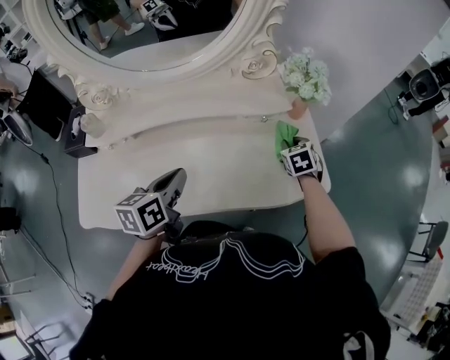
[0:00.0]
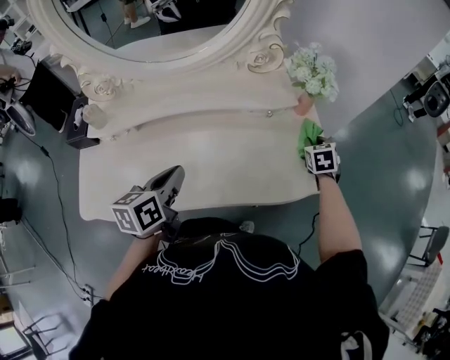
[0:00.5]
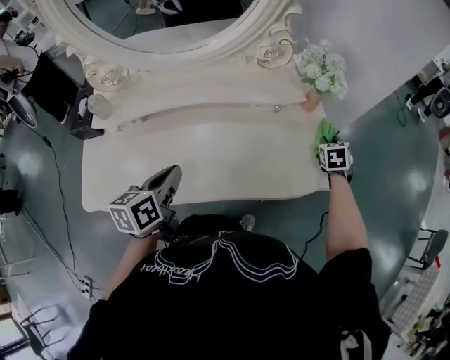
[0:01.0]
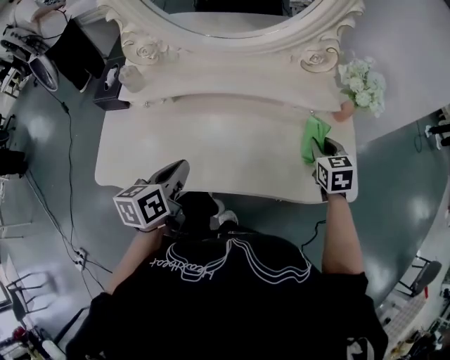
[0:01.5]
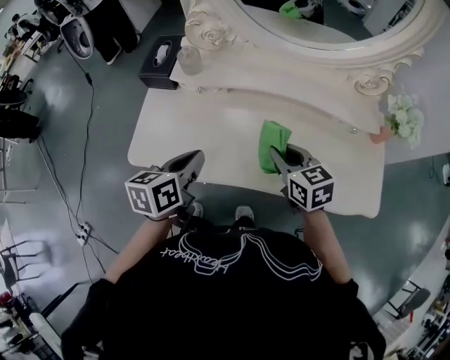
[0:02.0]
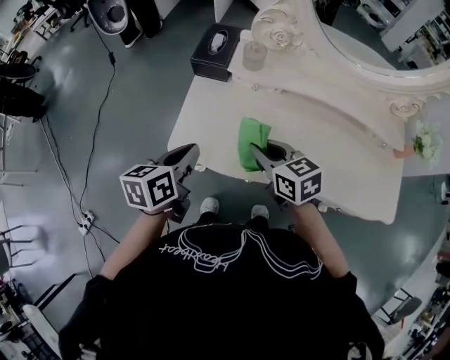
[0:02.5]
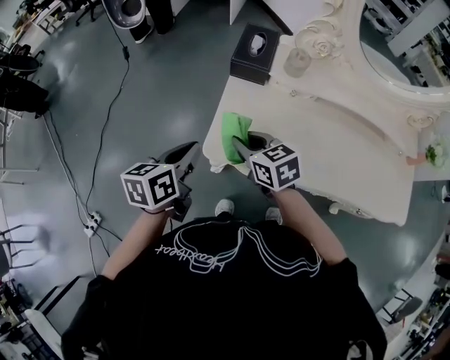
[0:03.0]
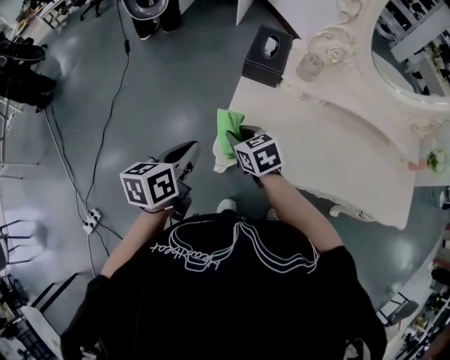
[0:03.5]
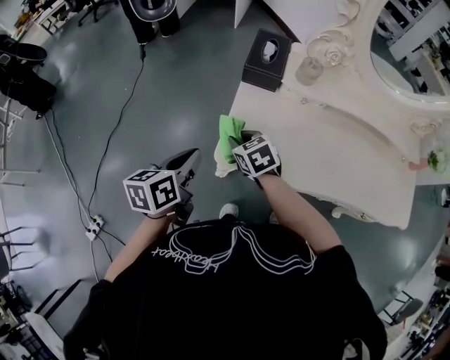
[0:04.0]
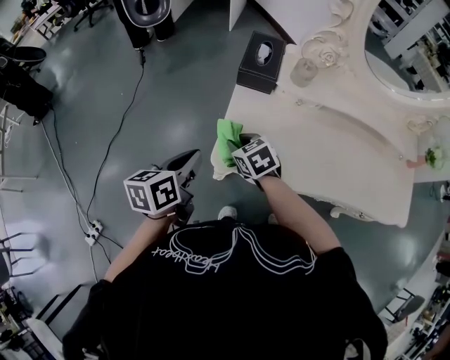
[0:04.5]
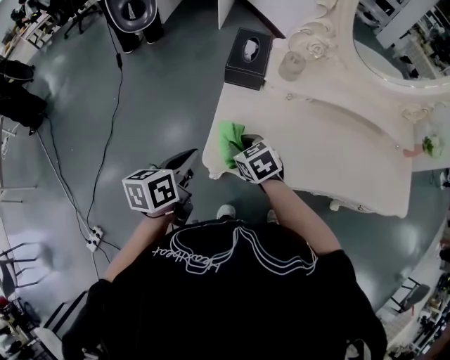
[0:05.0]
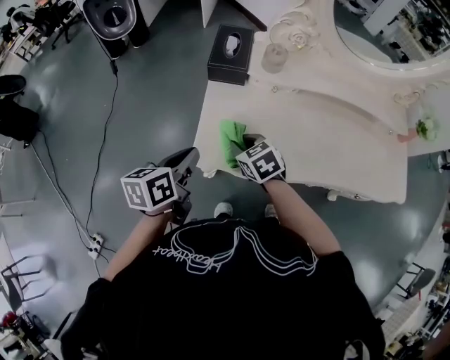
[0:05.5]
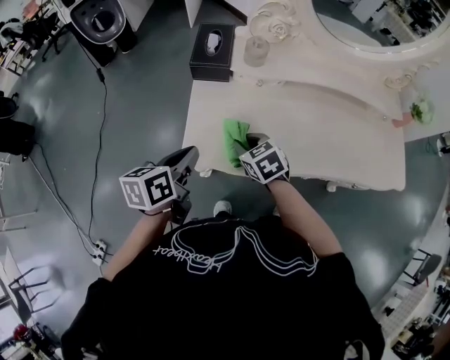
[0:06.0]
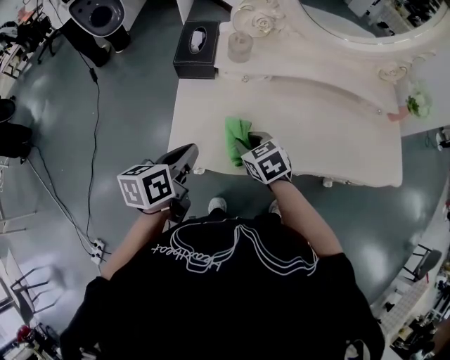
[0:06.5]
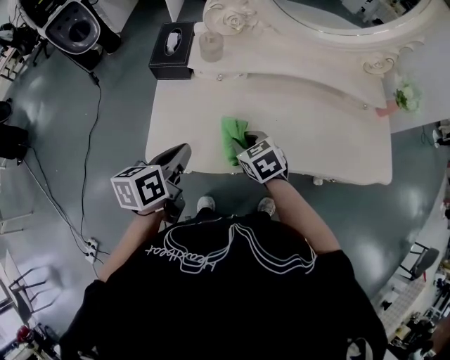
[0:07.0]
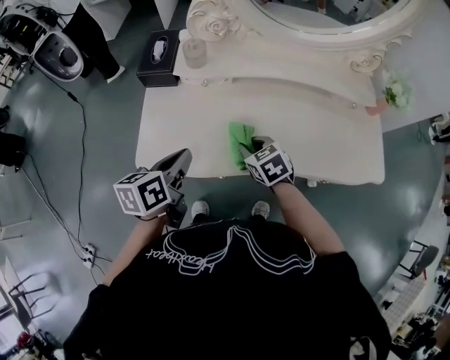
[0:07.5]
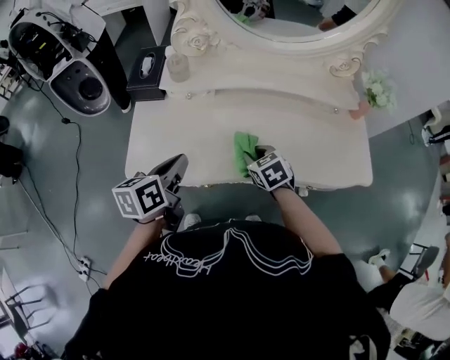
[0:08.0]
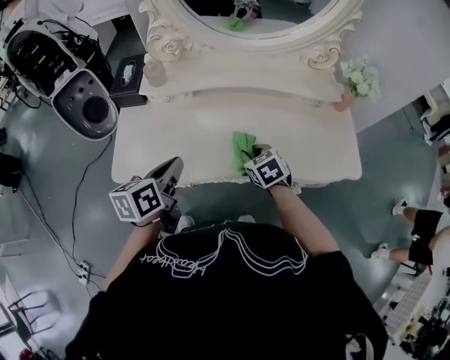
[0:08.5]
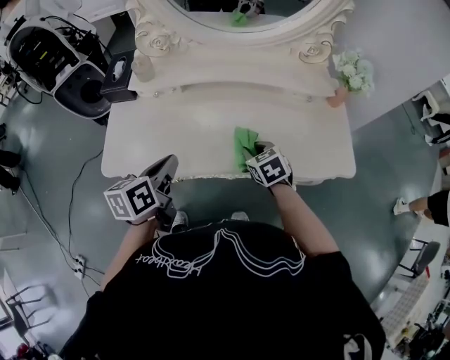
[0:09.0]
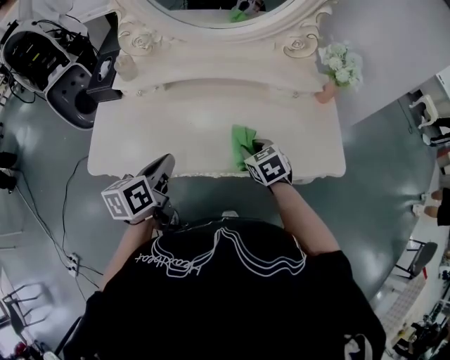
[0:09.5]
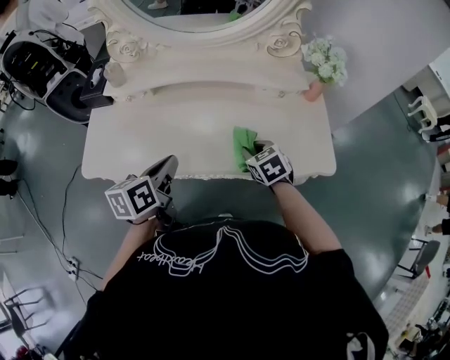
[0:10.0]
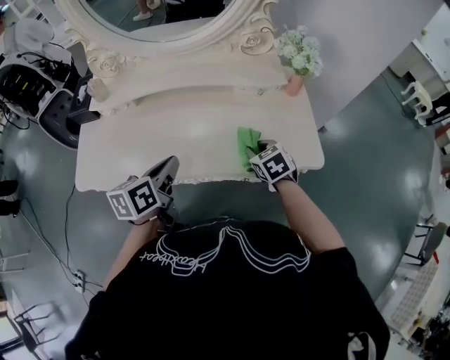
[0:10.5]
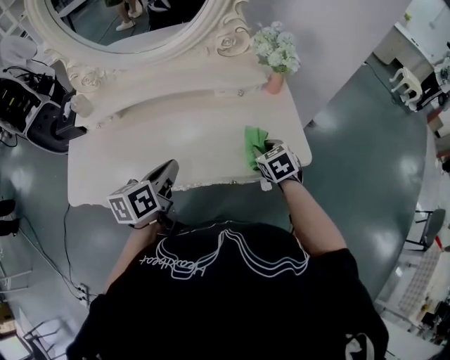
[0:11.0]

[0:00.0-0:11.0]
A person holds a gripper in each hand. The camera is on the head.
0.0 to 2.0 s: The right gripper shifts by roughly 40 cm, and rotates approximately 40 degrees. The left gripper ends up approximately 20 cm from where it was.
2.0 to 3.5 s: The grippers both shift to the left by roughly 40 cm.
3.5 to 5.5 s: The two grippers go roughly 5 cm to the right.
5.5 to 7.5 s: Both grippers move to the right, about 20 cm.
7.5 to 9.0 s: The two grippers go some 15 cm to the right.
9.0 to 11.0 s: The grippers both shift to the right by approximately 25 cm.

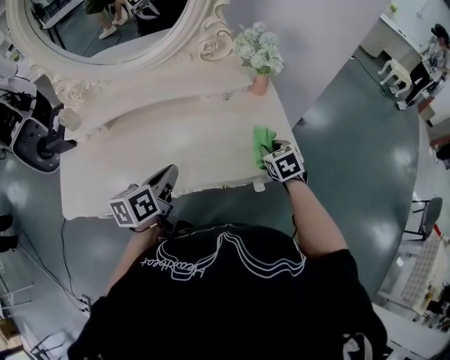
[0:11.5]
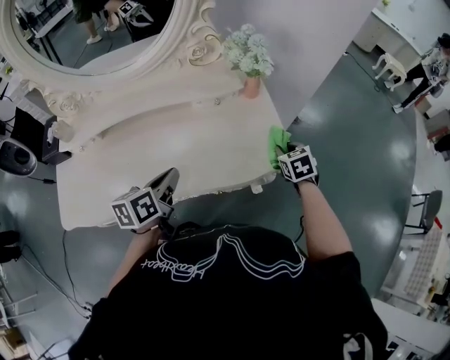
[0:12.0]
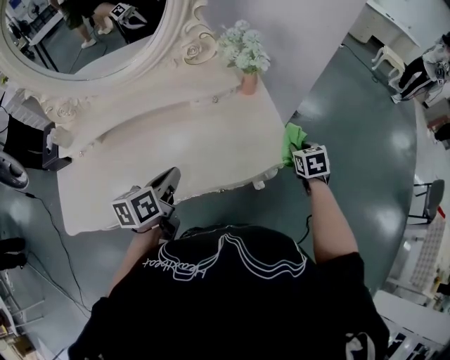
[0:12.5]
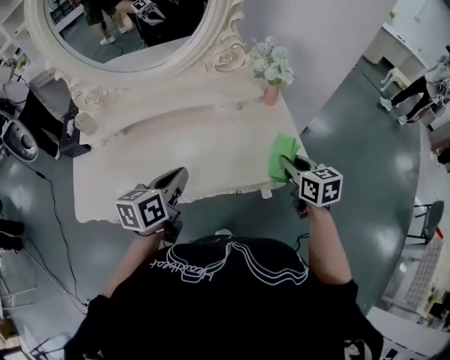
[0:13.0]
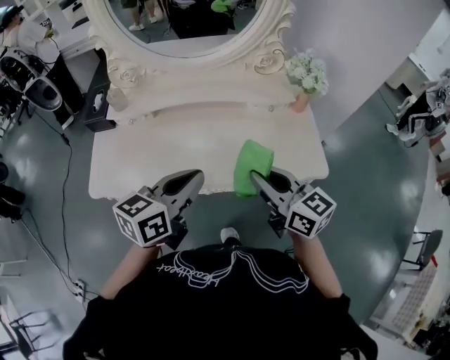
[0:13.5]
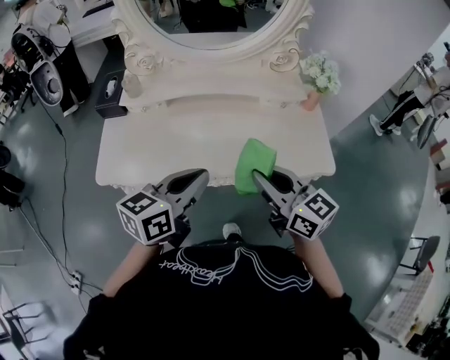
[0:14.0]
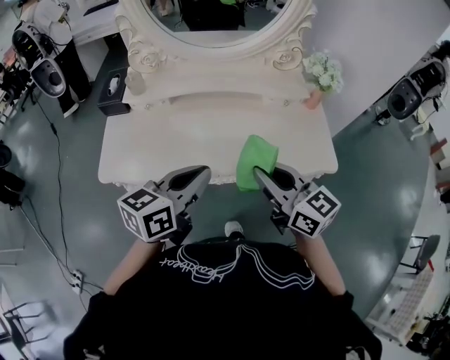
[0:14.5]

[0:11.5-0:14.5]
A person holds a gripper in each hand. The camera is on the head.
11.5 to 13.0 s: The left gripper travels upward by approximately 5 cm; the right gripper moves upward and backward, approximately 15 cm, moves roughly 15 cm to the right and comes back, and changes its angle by some 30 degrees.
13.0 to 14.5 s: The right gripper heads to the left and upward, covering about 30 cm, and swivels roughly 40 degrees; the left gripper is displaced backward, to the left and upward by about 15 cm.

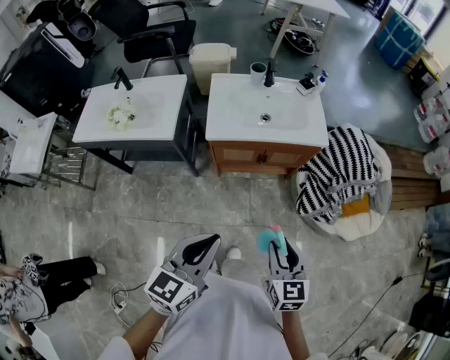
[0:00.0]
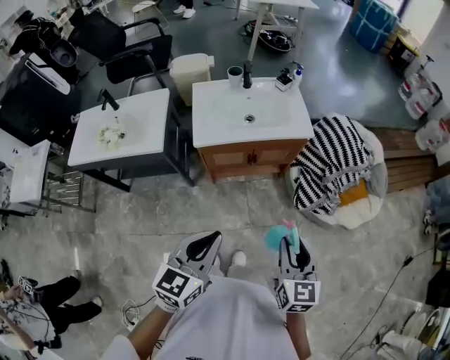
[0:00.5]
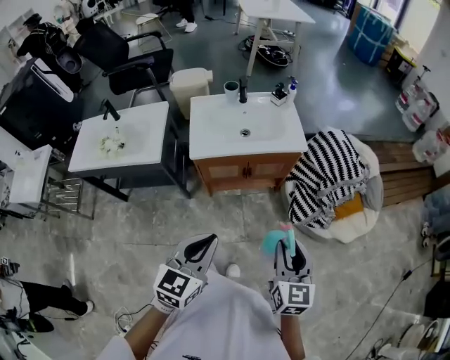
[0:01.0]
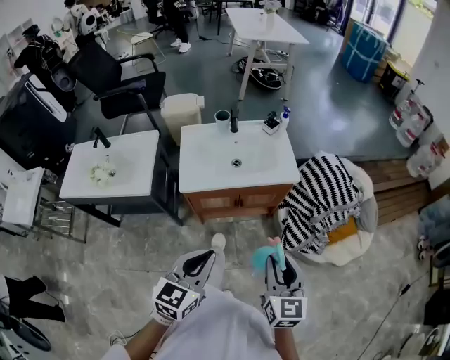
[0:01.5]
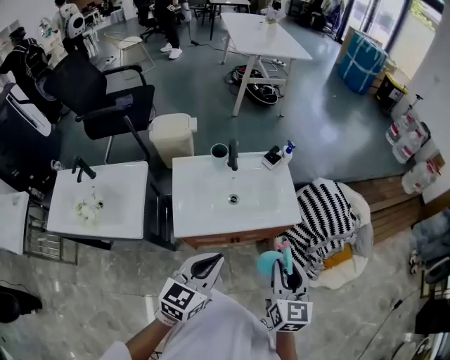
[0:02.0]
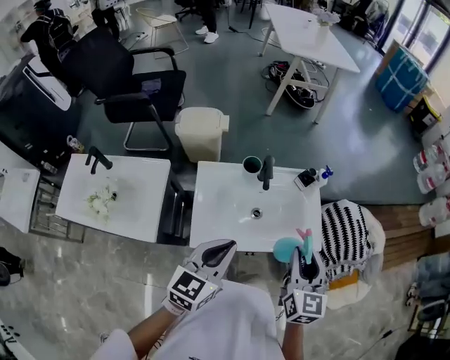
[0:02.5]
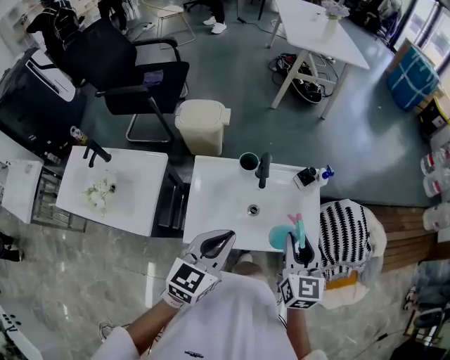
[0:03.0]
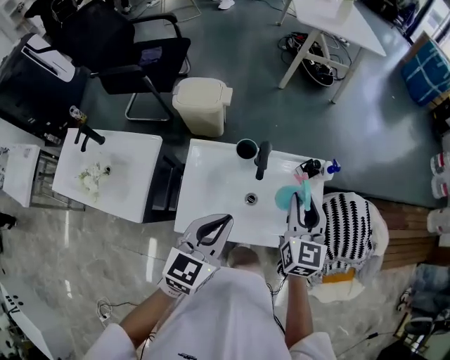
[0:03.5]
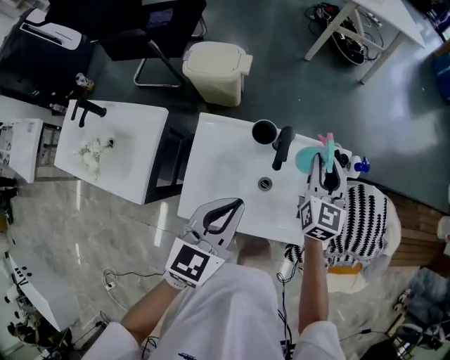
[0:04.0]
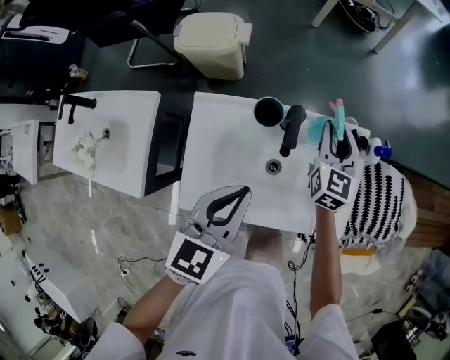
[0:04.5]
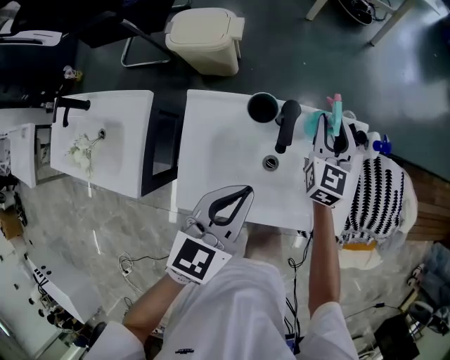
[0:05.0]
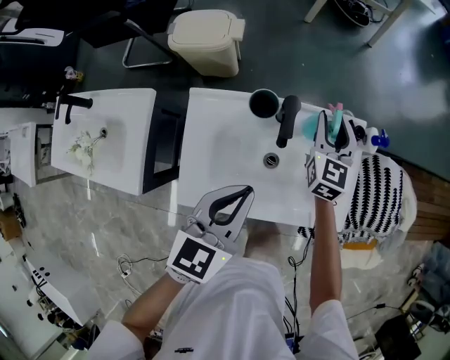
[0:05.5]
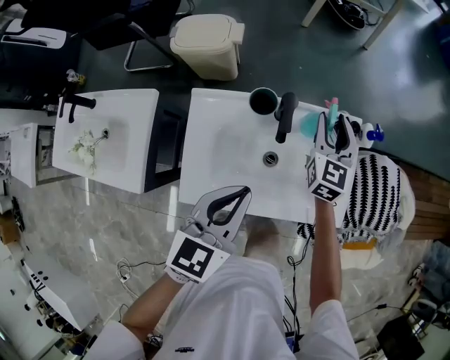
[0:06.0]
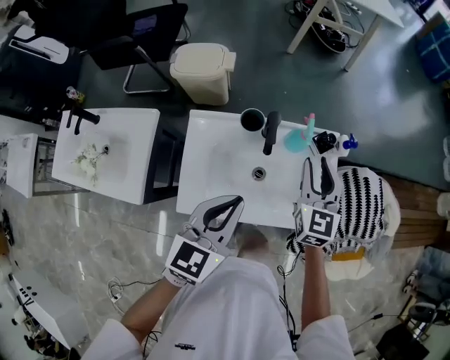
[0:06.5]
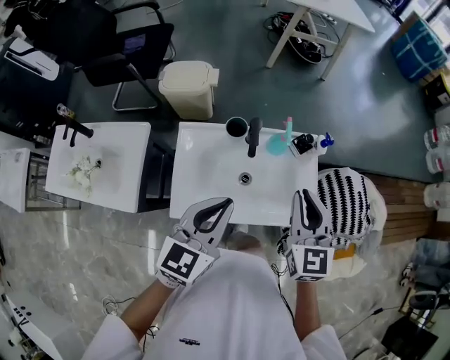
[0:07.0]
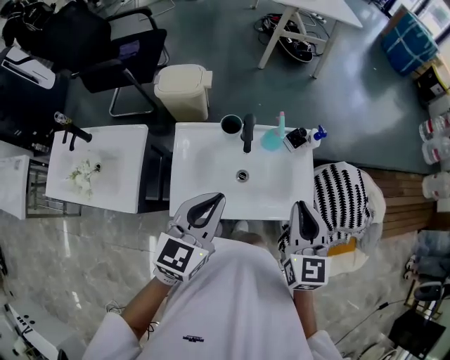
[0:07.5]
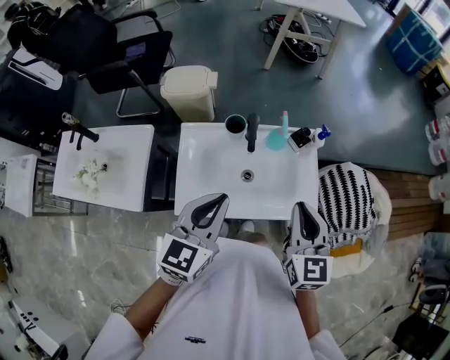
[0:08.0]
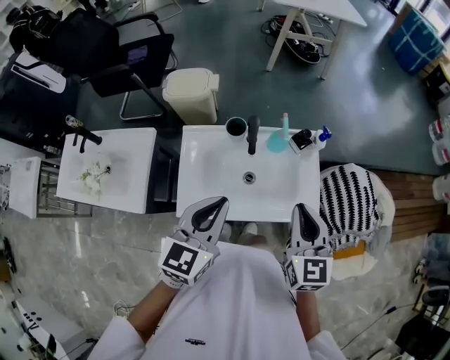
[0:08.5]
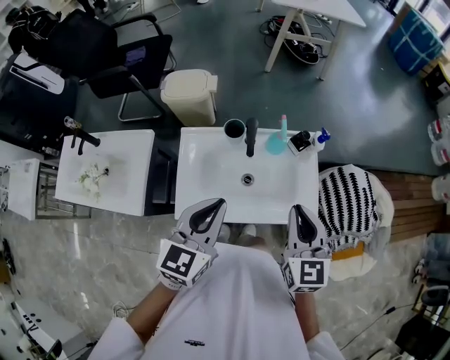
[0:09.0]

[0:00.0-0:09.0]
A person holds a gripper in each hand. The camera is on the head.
0.0 to 2.0 s: The two grippers go some 30 cm forward.
2.0 to 4.5 s: The right gripper moves forward, some 50 cm. The left gripper heads forward, covering about 30 cm, and changes its angle by roughly 20 degrees.
4.5 to 7.0 s: The right gripper travels backward and upward by about 30 cm. The left gripper moves upward and backward, roughly 15 cm.
7.0 to 9.0 s: The right gripper shifts some 5 cm backward.

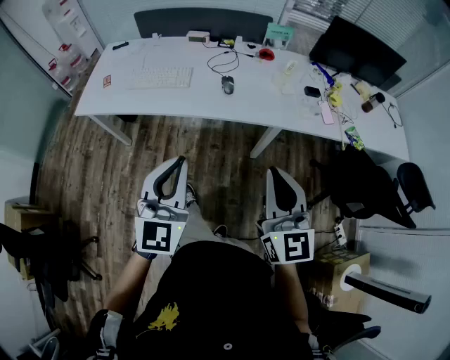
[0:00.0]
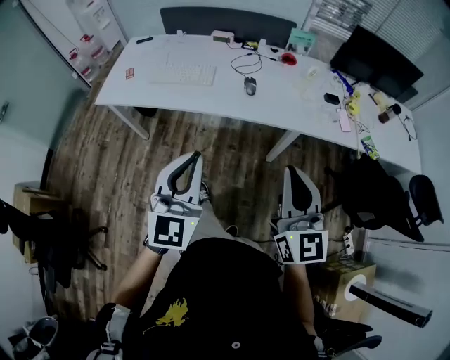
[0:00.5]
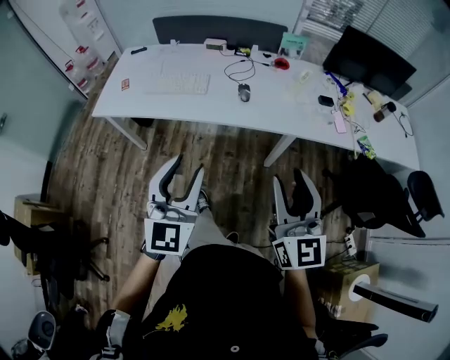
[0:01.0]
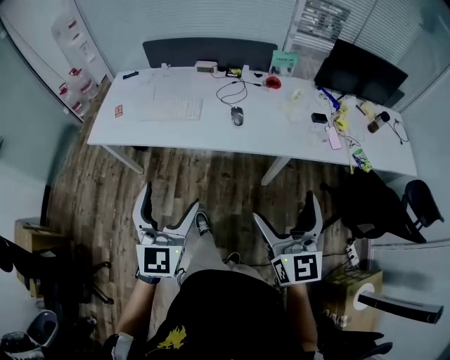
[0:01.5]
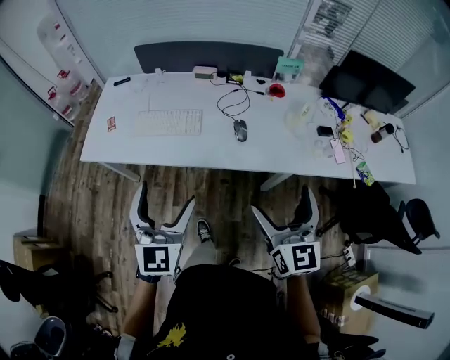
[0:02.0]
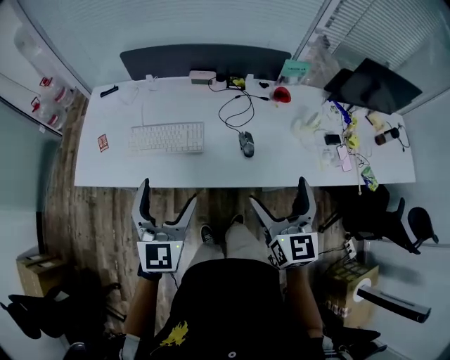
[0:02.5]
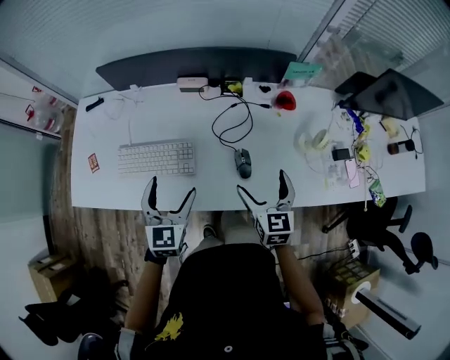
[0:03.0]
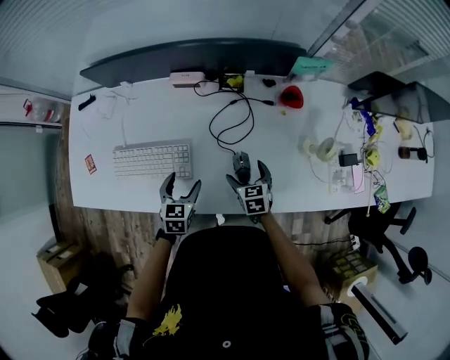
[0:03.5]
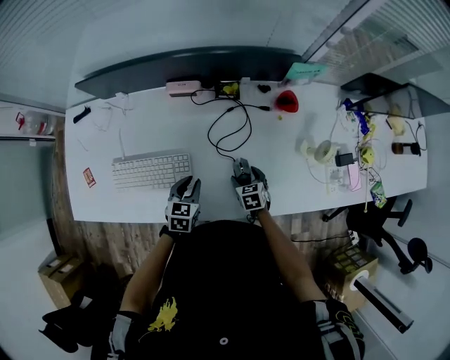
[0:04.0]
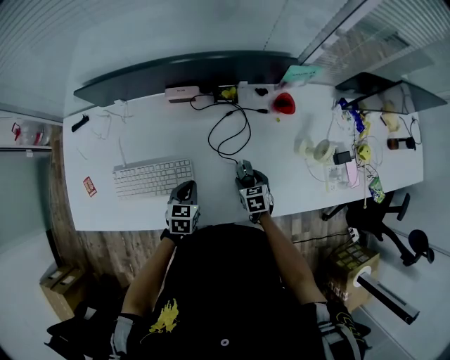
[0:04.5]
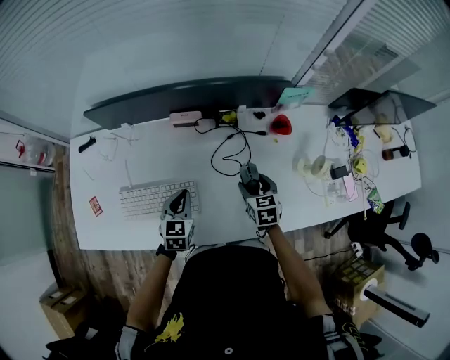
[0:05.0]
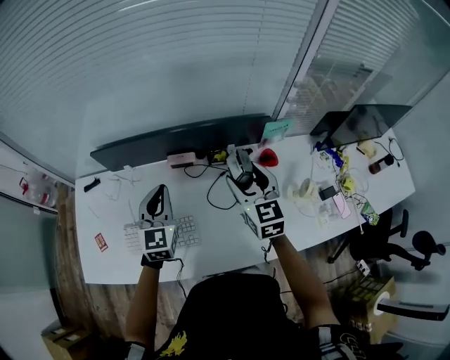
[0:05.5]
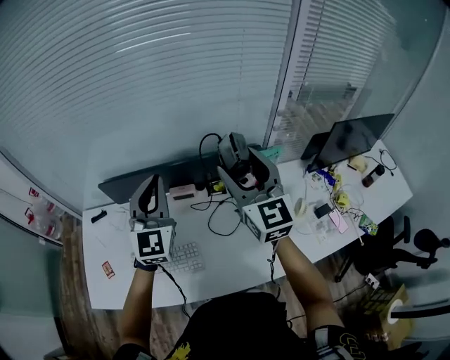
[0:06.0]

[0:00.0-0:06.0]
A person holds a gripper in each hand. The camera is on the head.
0.0 to 2.0 s: The right gripper shifts some 20 cm forward, and opens its fingers. Meanwhile the left gripper heads forward and to the left, covering about 20 cm, and opens its fingers.
2.0 to 4.0 s: The two grippers travel together, forward, approximately 50 cm. Both grippers move downward, some 40 cm. The left gripper tilts its fingers about 40 degrees downward, and closes its fingers, while the right gripper points its fingers approximately 50 degrees further downward, and closes its fingers.
4.0 to 6.0 s: The two grippers go some 50 cm upward. The right gripper points its fingers some 60 degrees further upward; the left gripper angles its fingers upward, by roughly 50 degrees.
